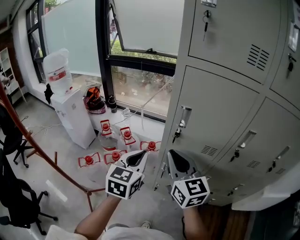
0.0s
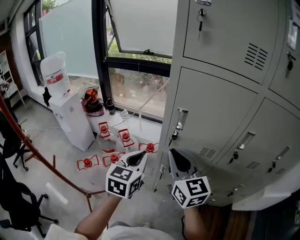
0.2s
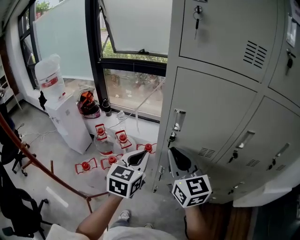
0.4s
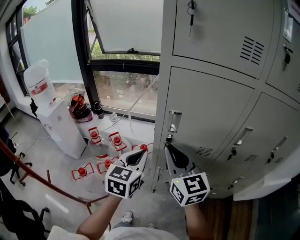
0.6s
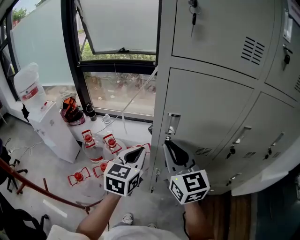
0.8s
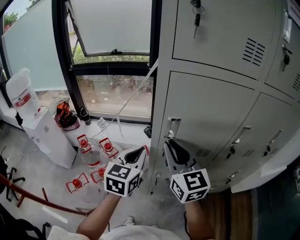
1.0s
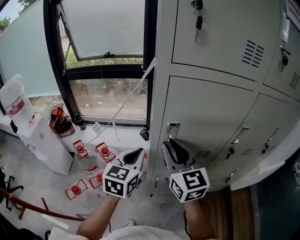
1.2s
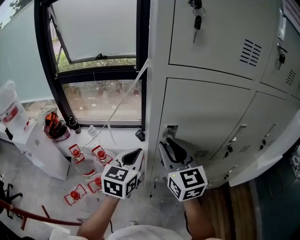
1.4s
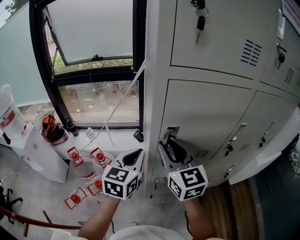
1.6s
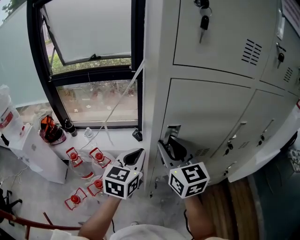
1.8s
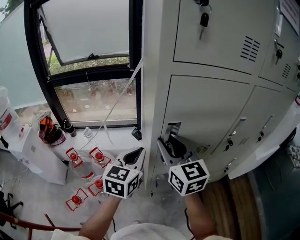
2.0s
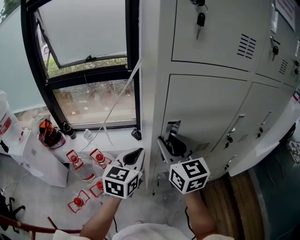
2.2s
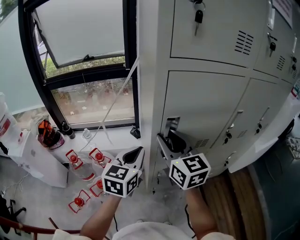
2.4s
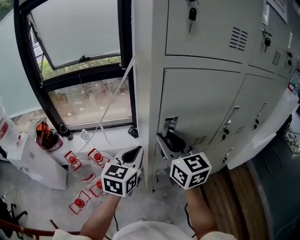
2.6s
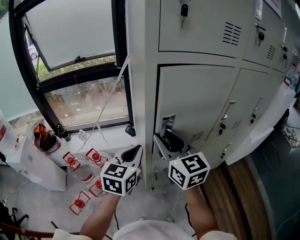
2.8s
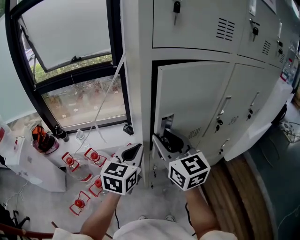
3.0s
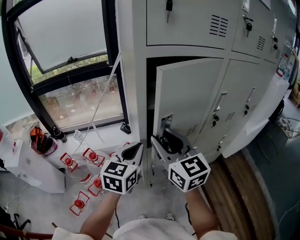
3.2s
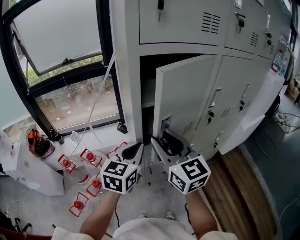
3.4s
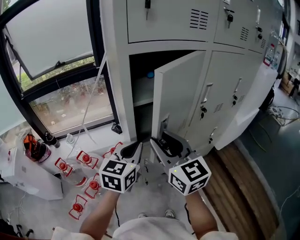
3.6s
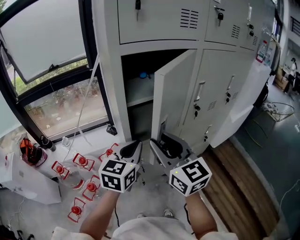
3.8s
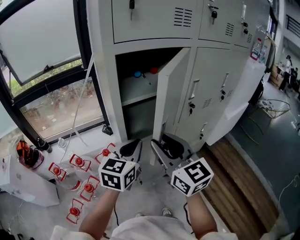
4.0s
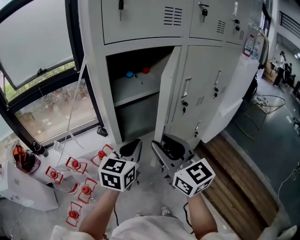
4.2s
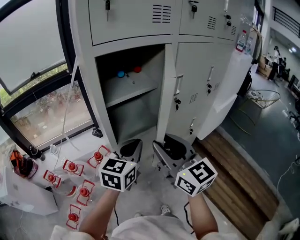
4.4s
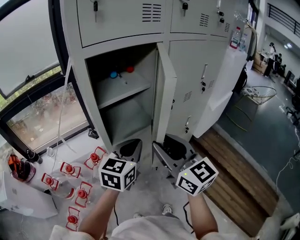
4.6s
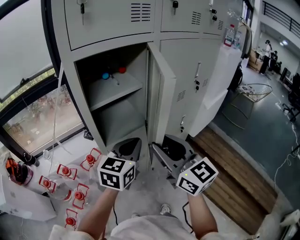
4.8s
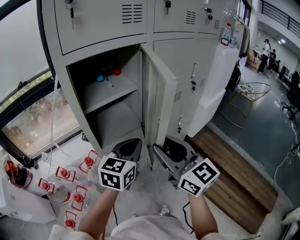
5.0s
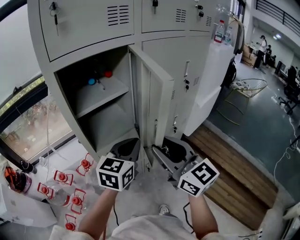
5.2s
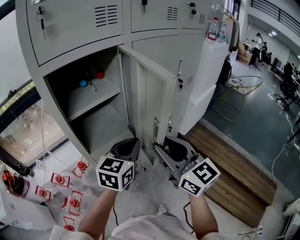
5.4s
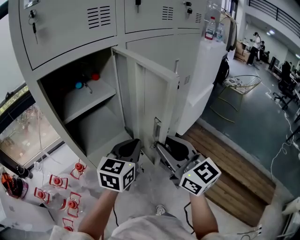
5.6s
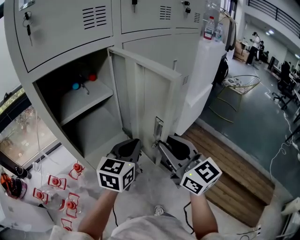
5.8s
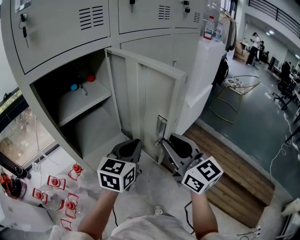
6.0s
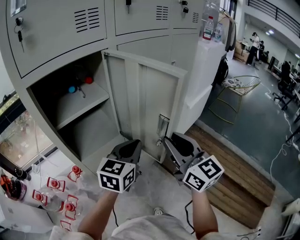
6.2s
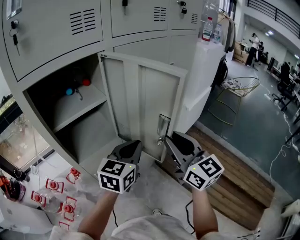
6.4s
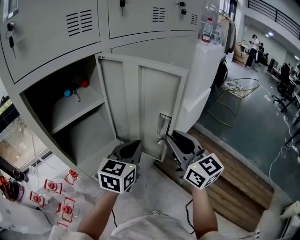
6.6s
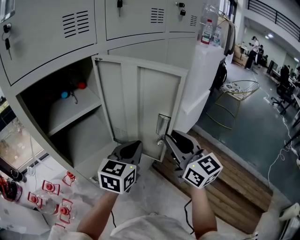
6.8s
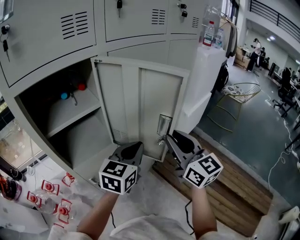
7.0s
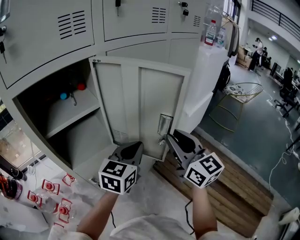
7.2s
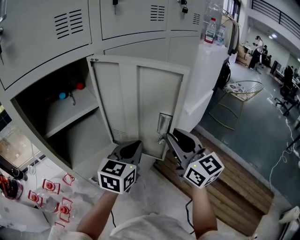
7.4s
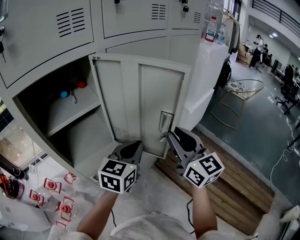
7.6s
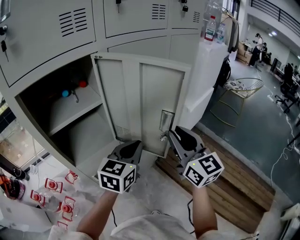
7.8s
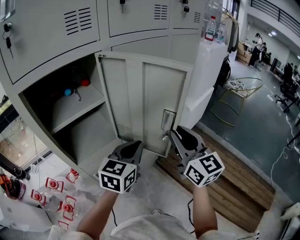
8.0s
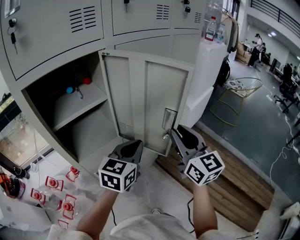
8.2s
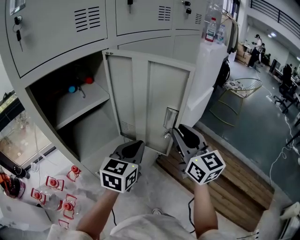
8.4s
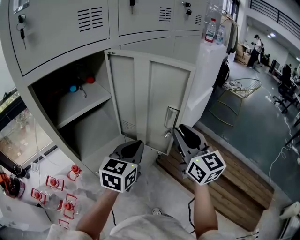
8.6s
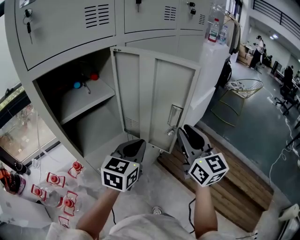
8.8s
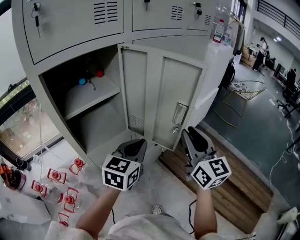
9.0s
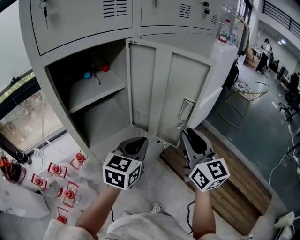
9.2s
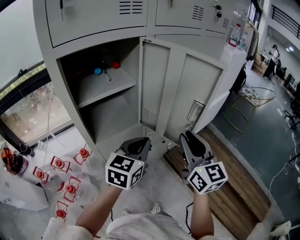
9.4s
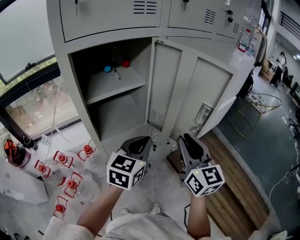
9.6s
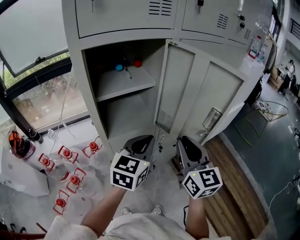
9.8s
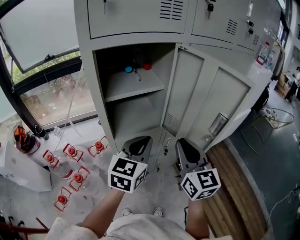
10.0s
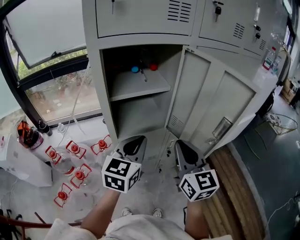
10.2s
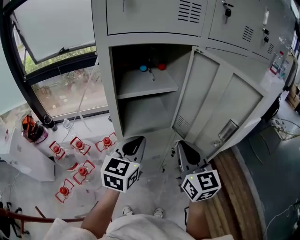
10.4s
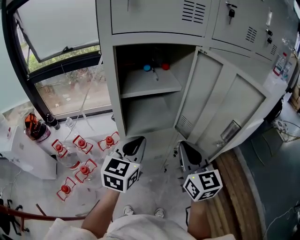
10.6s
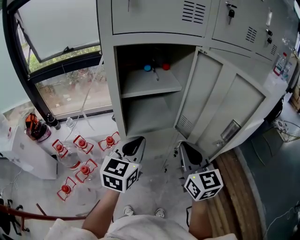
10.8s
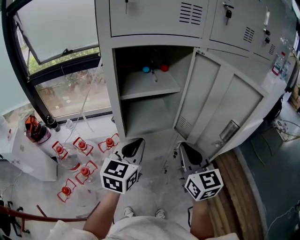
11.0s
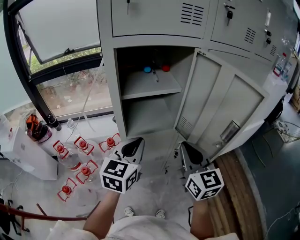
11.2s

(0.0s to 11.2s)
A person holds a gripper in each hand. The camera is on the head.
0.0s - 1.6s: The two grippers go roughly 15 cm forward. The right gripper swivels about 20 degrees. Meanwhile the left gripper changes its angle by approximately 20 degrees.
1.6s - 3.2s: The right gripper shifts roughly 5 cm backward; the left gripper shifts by approximately 5 cm.
3.2s - 4.8s: The left gripper heads to the right, covering approximately 15 cm, and swivels roughly 20 degrees. Meanwhile the right gripper goes some 15 cm to the right and backward.
4.8s - 6.4s: The right gripper shifts some 20 cm to the right and forward. The left gripper moves to the right, about 15 cm.
8.0s - 9.6s: Both grippers move to the left and backward, about 10 cm.
9.6s - 11.2s: Both grippers move to the left, about 10 cm. The left gripper changes its angle by roughly 20 degrees.

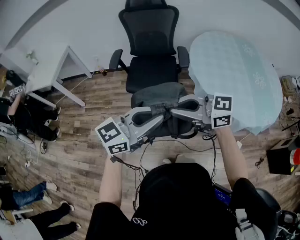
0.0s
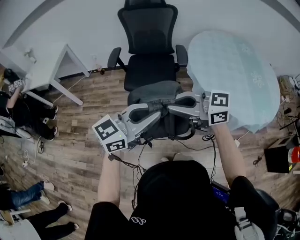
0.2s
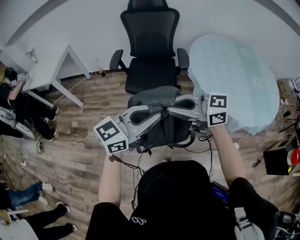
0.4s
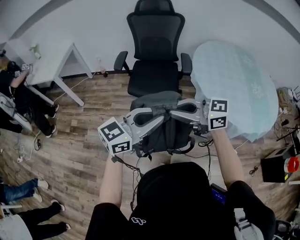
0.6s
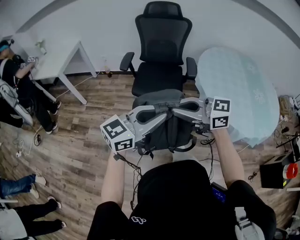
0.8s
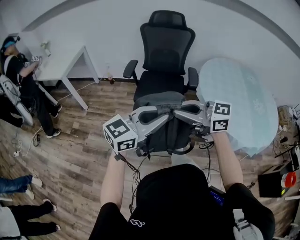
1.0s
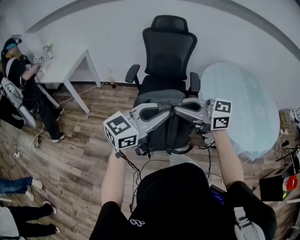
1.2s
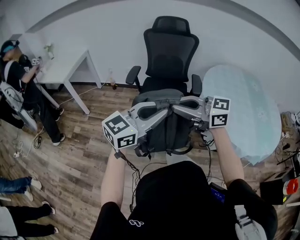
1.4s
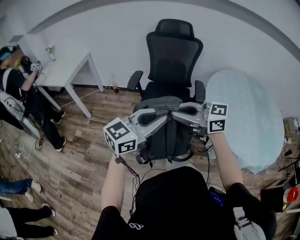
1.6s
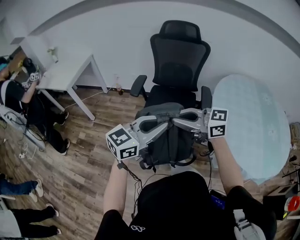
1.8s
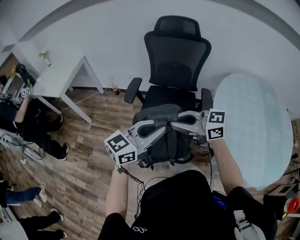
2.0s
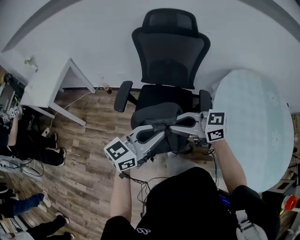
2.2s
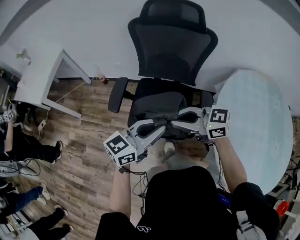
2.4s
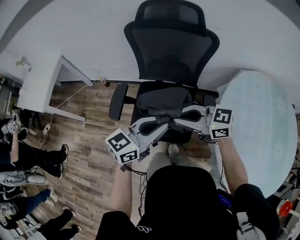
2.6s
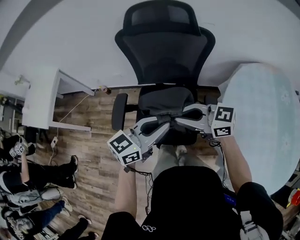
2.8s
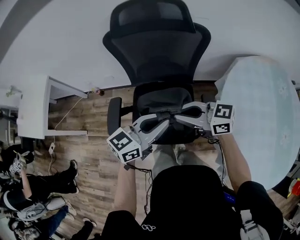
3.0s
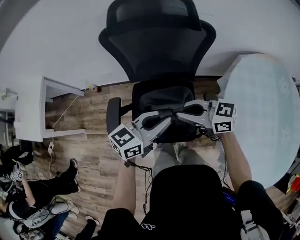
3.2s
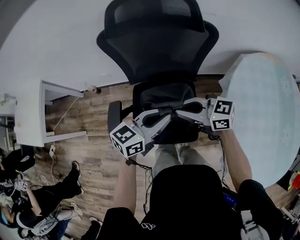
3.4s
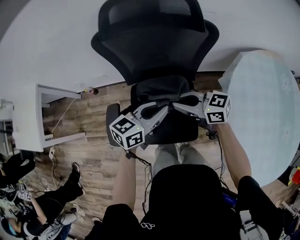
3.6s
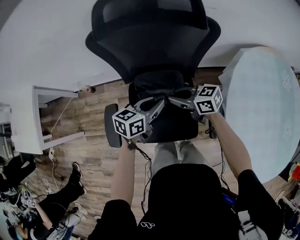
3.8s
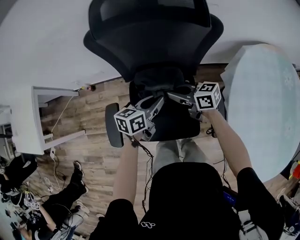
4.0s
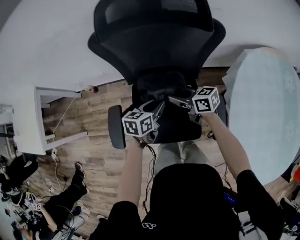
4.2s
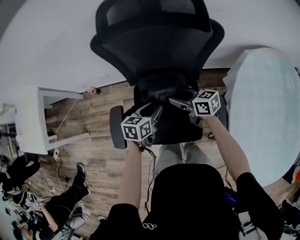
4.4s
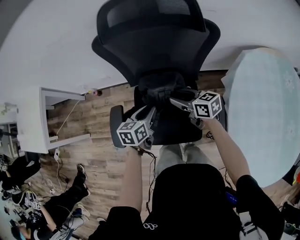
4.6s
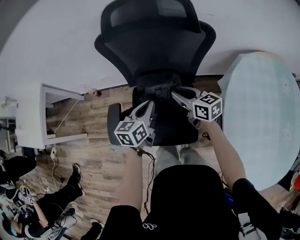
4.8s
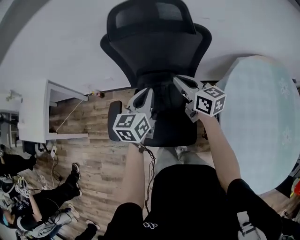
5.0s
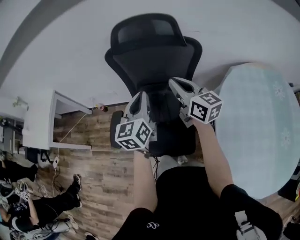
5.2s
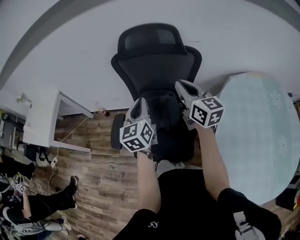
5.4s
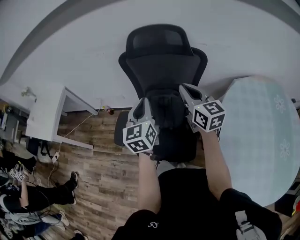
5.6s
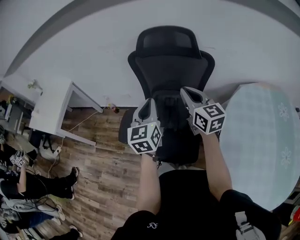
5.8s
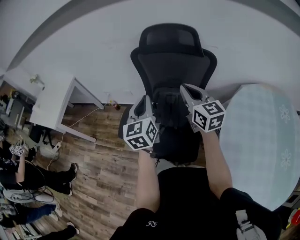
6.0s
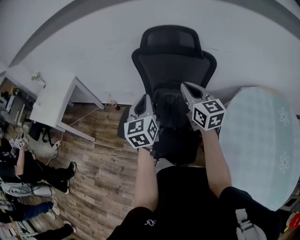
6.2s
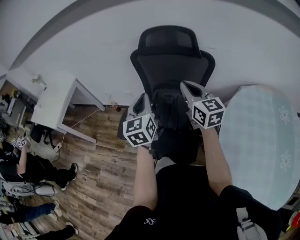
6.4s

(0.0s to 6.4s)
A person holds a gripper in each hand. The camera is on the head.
0.0s - 1.6s: The left gripper ends up roughly 10 cm from where it was. Meanwhile the right gripper shifts by some 10 cm.
1.6s - 3.2s: Both grippers are carried roughly 60 cm. The right gripper changes its angle by some 20 degrees. The left gripper rotates roughly 30 degrees.
3.2s - 4.8s: The left gripper moves about 15 cm, rotates about 30 degrees, and opens, then closes once more, while the right gripper shifts by some 15 cm, swivels some 30 degrees, and opens, then closes again.
4.8s - 6.4s: The left gripper is displaced upward and backward by roughly 20 cm, and rotates approximately 40 degrees. The right gripper goes about 20 cm upward, turns by about 30 degrees, and closes its fingers.

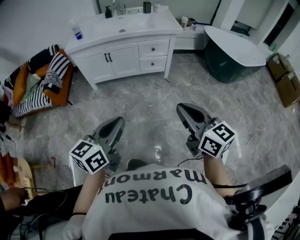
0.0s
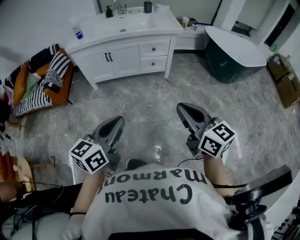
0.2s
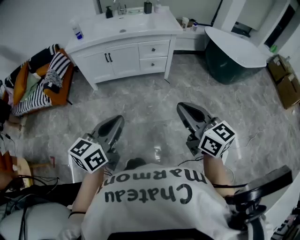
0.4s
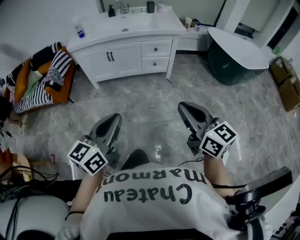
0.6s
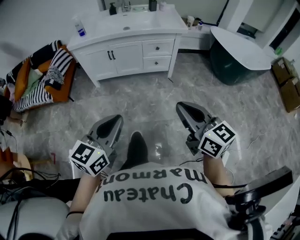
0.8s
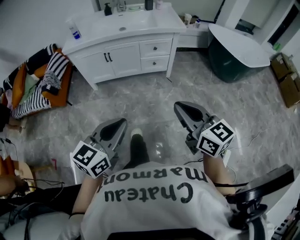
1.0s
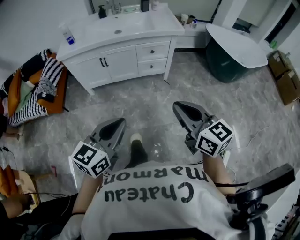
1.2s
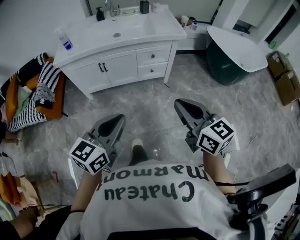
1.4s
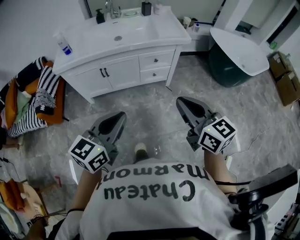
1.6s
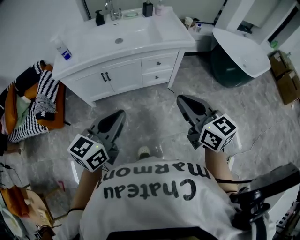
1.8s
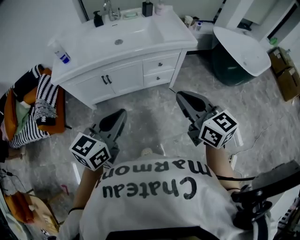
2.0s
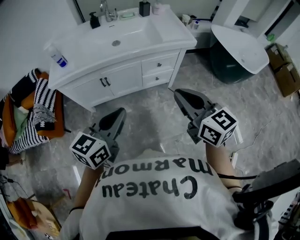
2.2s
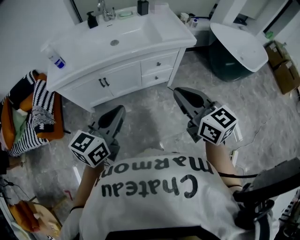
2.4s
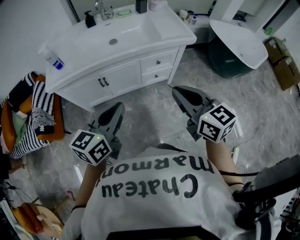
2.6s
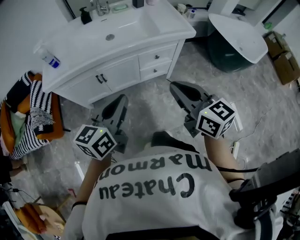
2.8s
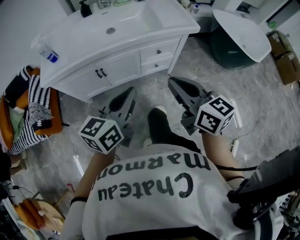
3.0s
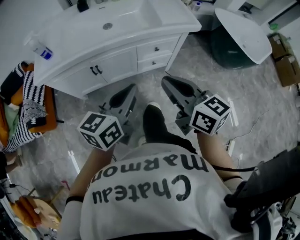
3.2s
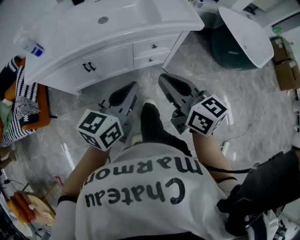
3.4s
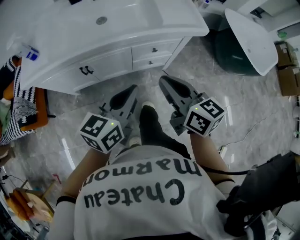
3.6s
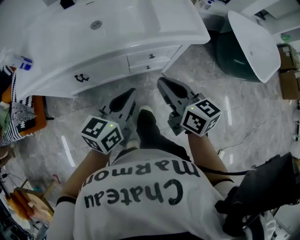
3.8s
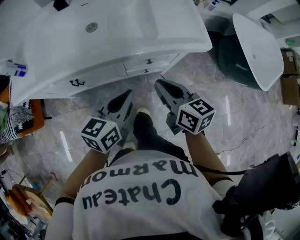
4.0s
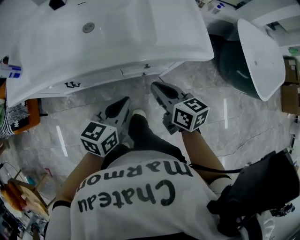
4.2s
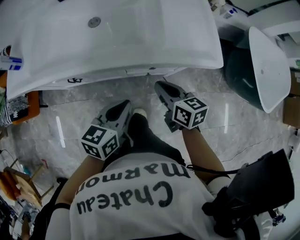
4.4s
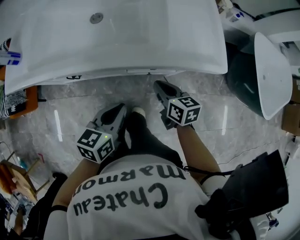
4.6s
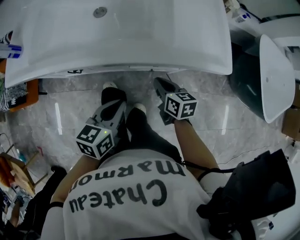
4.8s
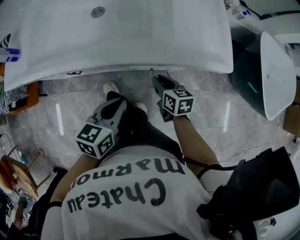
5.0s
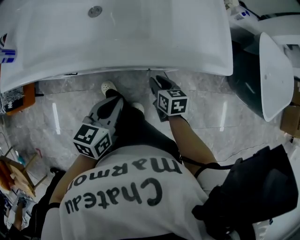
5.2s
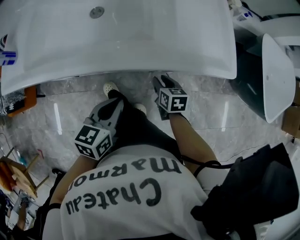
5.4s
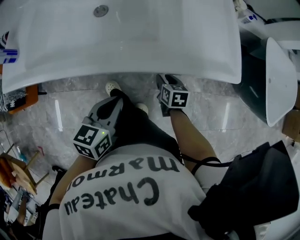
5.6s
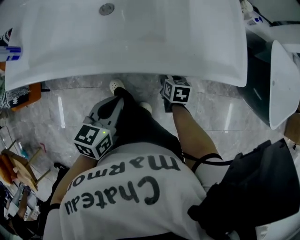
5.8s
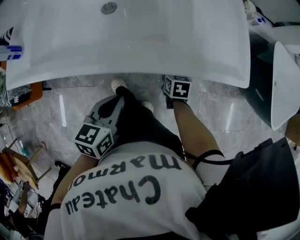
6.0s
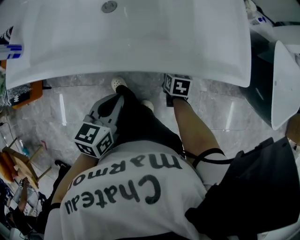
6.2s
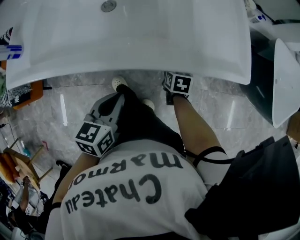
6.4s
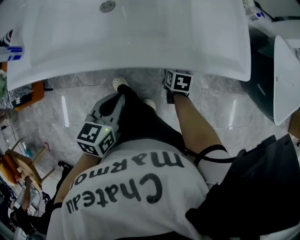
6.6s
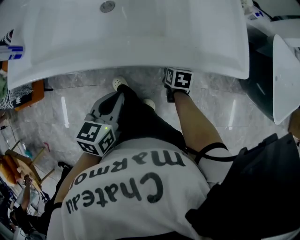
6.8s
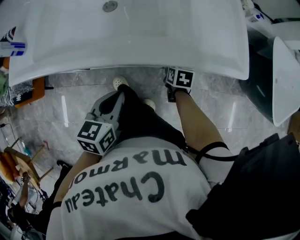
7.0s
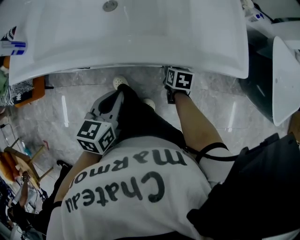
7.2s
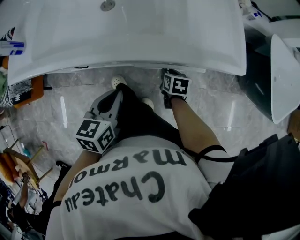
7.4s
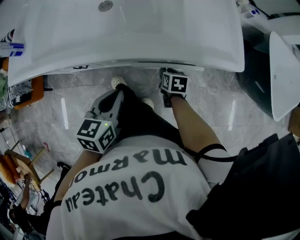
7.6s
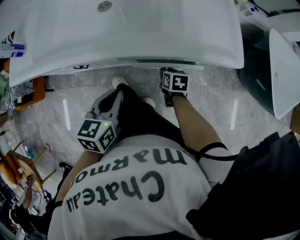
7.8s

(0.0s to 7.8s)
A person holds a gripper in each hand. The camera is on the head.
0.0s - 1.6s: The two grippers go some 25 cm forward.
1.6s - 3.2s: The right gripper goes some 20 cm forward and to the left; the left gripper is displaced forward by approximately 20 cm.
3.2s - 4.6s: The right gripper moves forward and downward, about 40 cm, and changes its angle by about 30 degrees, while the left gripper goes approximately 30 cm forward, downward and to the right, and swivels approximately 30 degrees.
4.6s - 6.2s: The right gripper shifts some 15 cm downward and forward, swivels some 30 degrees, and opens. Meanwhile the left gripper is displaced to the left by roughly 5 cm.
6.2s - 7.8s: The right gripper travels backward by about 5 cm.
